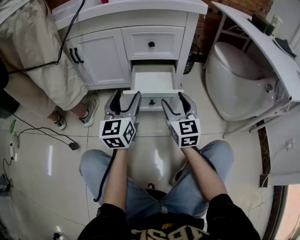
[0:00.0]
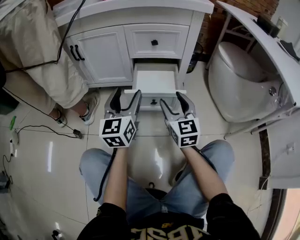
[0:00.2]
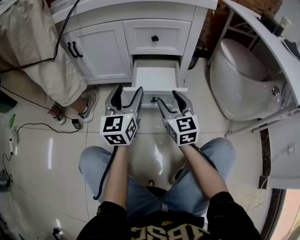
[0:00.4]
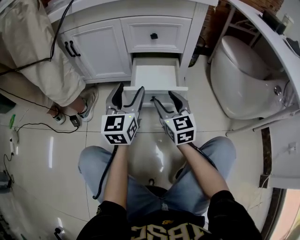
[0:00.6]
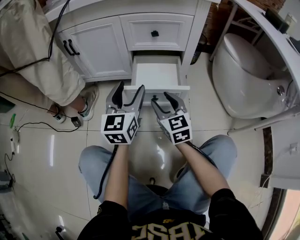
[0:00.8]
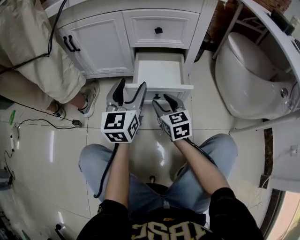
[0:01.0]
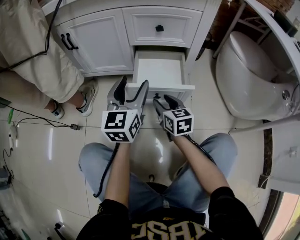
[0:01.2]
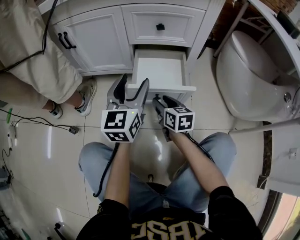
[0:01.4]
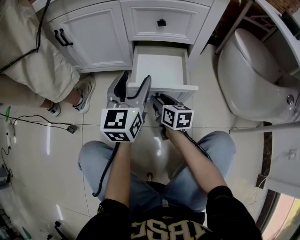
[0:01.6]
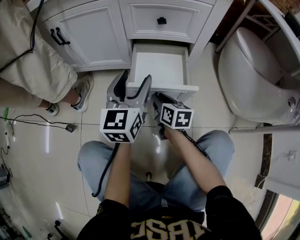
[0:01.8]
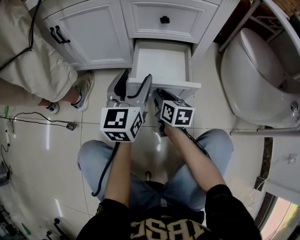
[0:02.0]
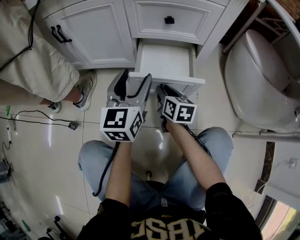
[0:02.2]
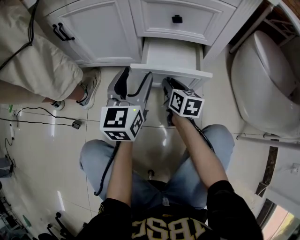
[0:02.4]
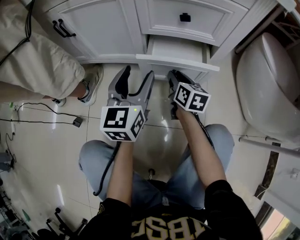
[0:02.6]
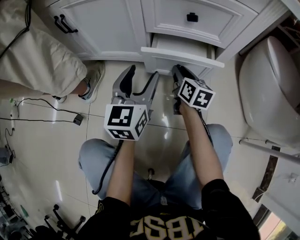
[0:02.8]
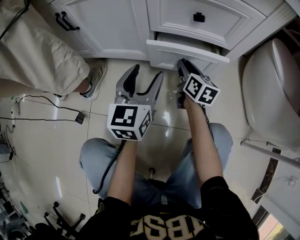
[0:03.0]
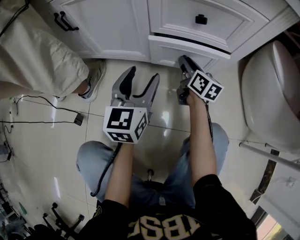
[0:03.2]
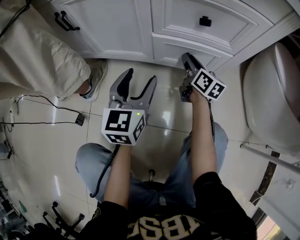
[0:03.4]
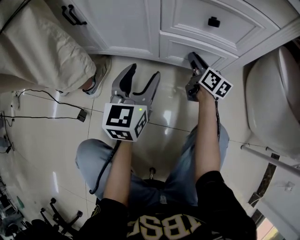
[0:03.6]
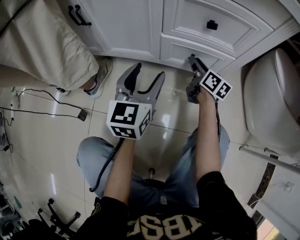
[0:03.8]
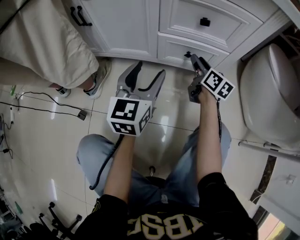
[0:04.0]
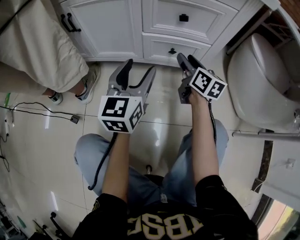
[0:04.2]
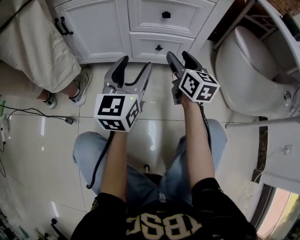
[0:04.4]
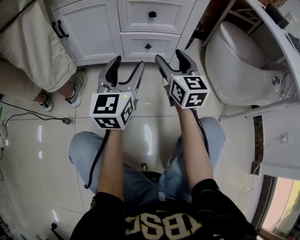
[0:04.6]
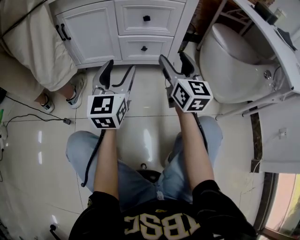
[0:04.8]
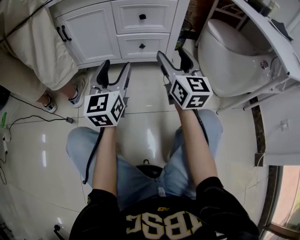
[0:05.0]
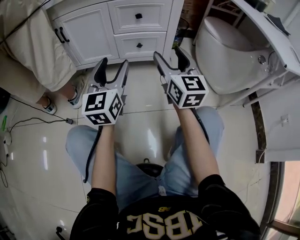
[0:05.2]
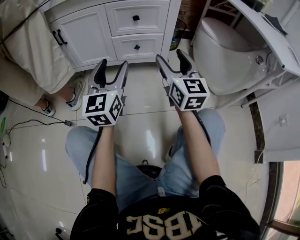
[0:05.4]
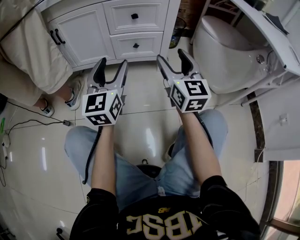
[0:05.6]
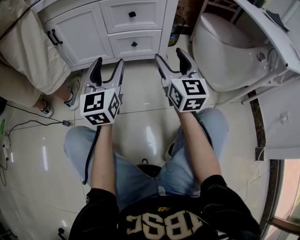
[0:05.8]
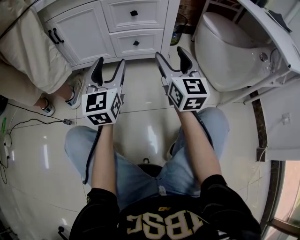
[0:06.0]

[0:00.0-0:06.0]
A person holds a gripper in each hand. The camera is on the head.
0.0 to 1.6 s: The right gripper shifts roughly 20 cm downward and forward, and changes its angle by roughly 40 degrees; the left gripper travels forward by about 10 cm.
1.6 to 3.0 s: The left gripper moves forward and downward, some 10 cm. Meanwhile the right gripper travels forward by about 15 cm.
3.0 to 4.4 s: The left gripper travels upward and backward by some 10 cm. Meanwhile the right gripper heads upward and backward, covering approximately 20 cm, and opens its fingers.
4.4 to 6.0 s: The left gripper moves backward, approximately 10 cm. Meanwhile the right gripper is displaced backward and upward by about 20 cm, and swivels roughly 20 degrees.

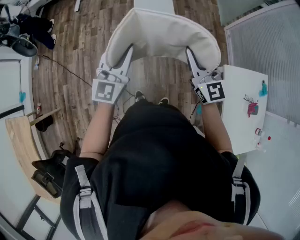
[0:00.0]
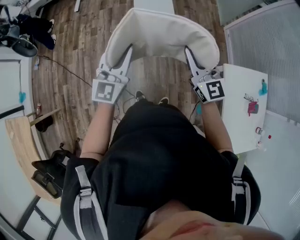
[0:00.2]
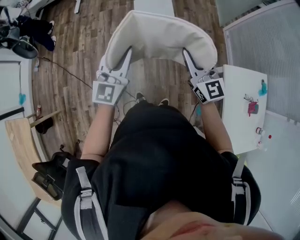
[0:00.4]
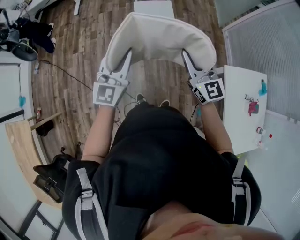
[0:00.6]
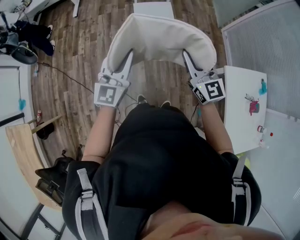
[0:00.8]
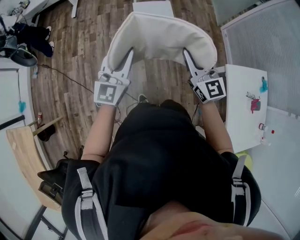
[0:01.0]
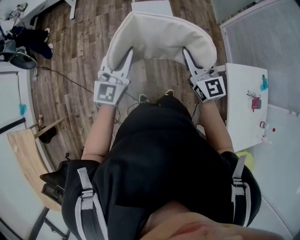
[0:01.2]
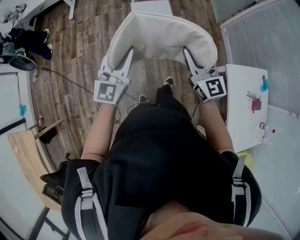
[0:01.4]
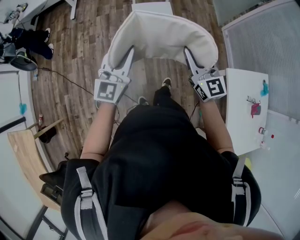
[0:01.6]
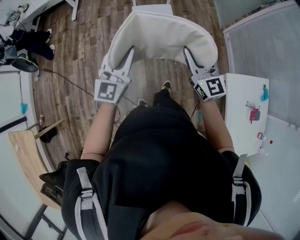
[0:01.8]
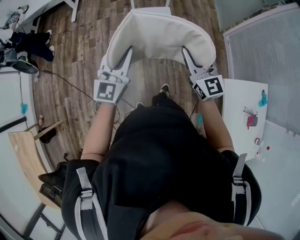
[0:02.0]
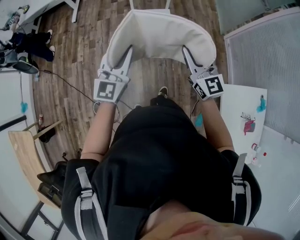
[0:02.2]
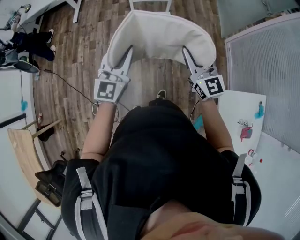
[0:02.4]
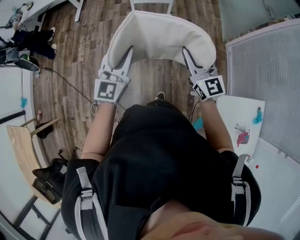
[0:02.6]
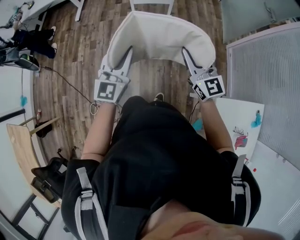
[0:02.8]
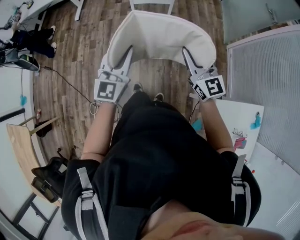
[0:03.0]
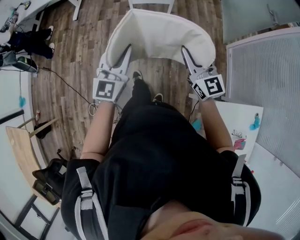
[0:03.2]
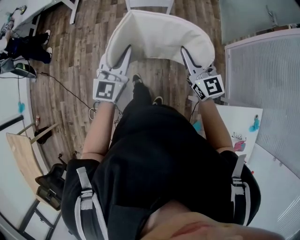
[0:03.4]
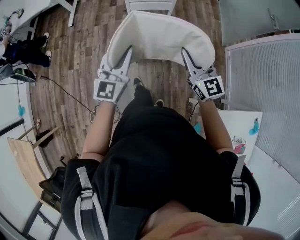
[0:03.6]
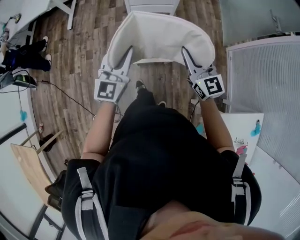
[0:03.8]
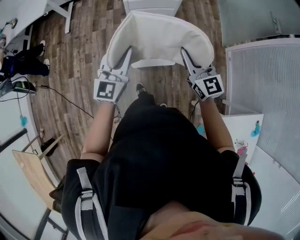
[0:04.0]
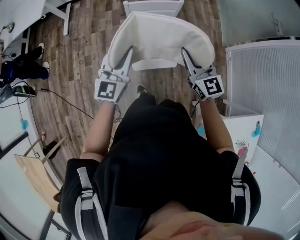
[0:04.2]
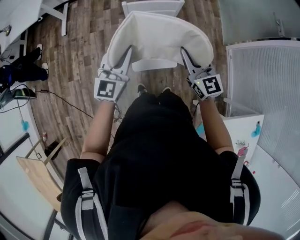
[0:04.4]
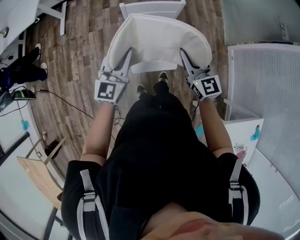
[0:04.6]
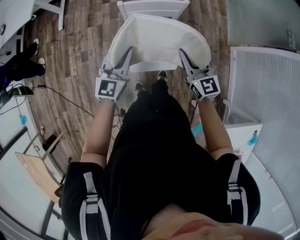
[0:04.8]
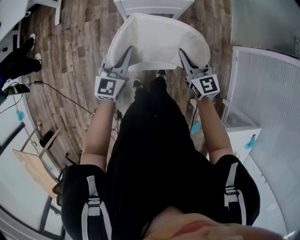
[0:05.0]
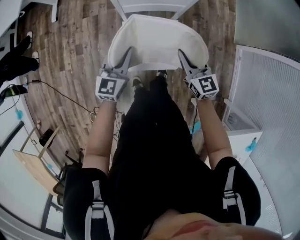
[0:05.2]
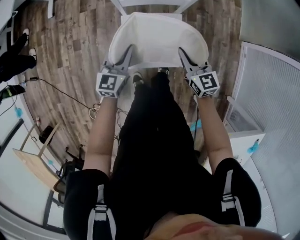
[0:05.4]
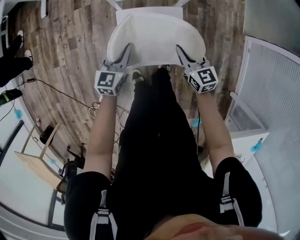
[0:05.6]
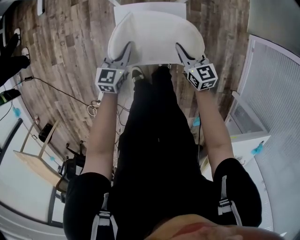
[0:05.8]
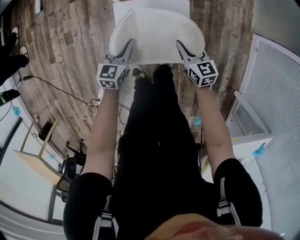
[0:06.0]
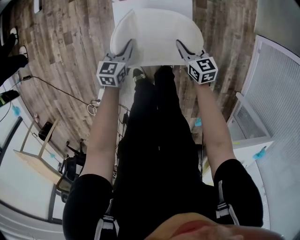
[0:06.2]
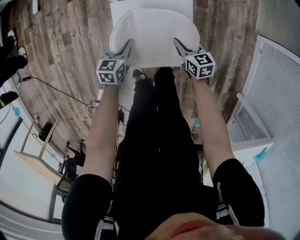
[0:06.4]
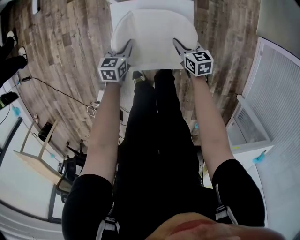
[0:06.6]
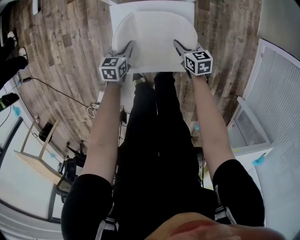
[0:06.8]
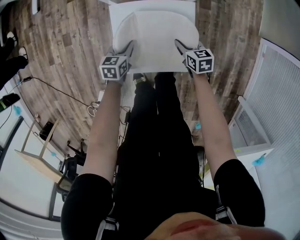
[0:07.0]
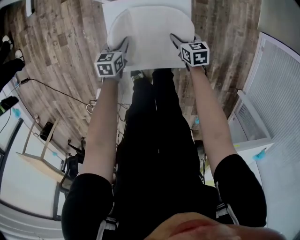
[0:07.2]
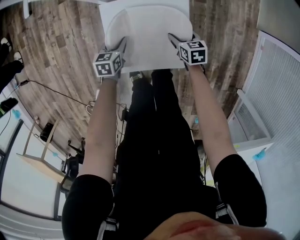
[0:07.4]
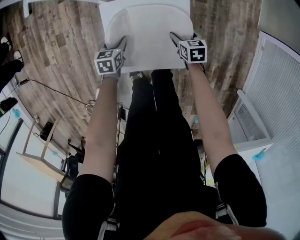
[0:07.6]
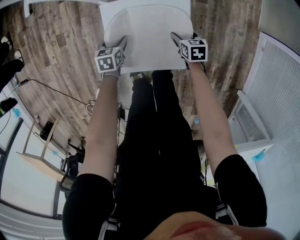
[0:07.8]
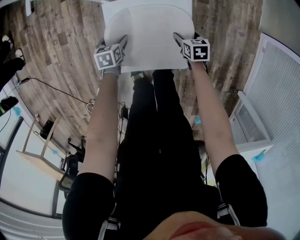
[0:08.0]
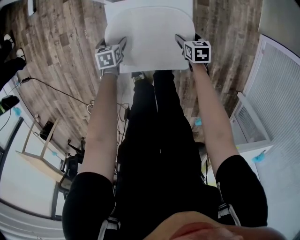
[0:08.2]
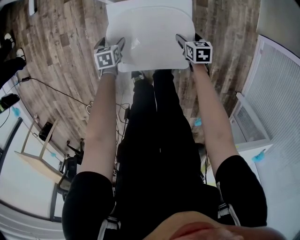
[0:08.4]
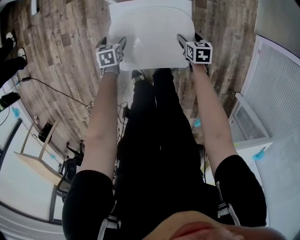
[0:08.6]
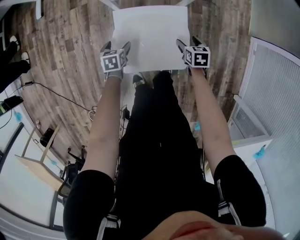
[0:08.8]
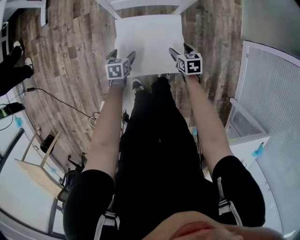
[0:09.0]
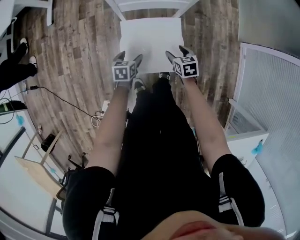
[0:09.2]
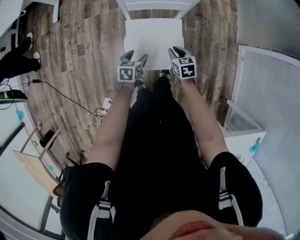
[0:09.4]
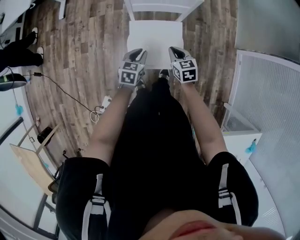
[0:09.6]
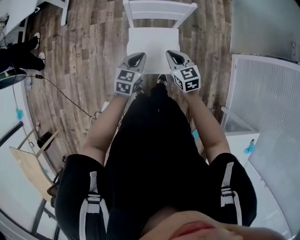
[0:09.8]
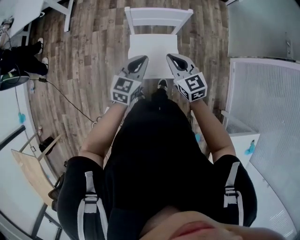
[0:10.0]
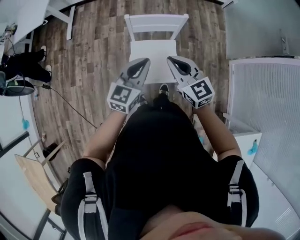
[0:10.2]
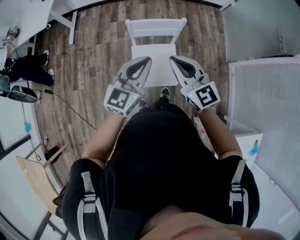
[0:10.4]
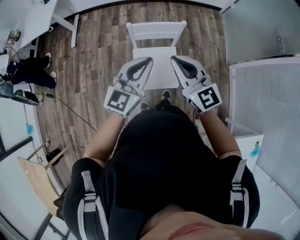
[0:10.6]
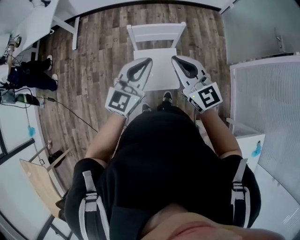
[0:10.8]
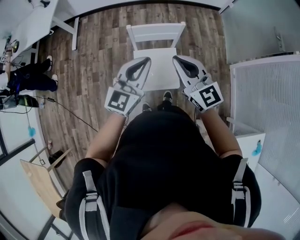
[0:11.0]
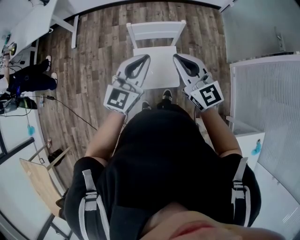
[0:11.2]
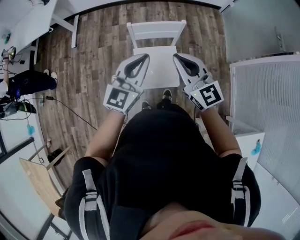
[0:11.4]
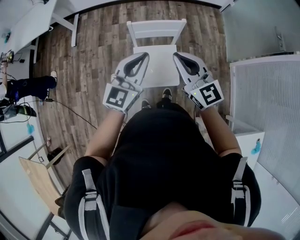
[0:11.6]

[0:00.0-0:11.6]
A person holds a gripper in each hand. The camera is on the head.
0.0 to 1.4 s: Both grippers travel together to the left, roughly 5 cm.
1.4 to 2.8 s: The grippers both shift forward and to the right by approximately 25 cm.
2.8 to 4.4 s: The two grippers go roughly 30 cm forward.
4.4 to 5.8 s: Both grippers move downward, about 50 cm. The left gripper swivels about 30 degrees; the right gripper turns by about 30 degrees.
5.8 to 7.2 s: The two grippers go roughly 20 cm downward. The right gripper turns by approximately 20 degrees, and opens up. The left gripper swivels approximately 20 degrees.
7.2 to 8.8 s: The left gripper shifts approximately 5 cm to the left, and opens its fingers; the right gripper heads upward, covering approximately 5 cm.
8.8 to 10.2 s: Both grippers move upward, roughly 60 cm. The left gripper tips its fingers upward by some 50 degrees, and closes its fingers; the right gripper tilts its fingers about 40 degrees upward, and closes.
10.2 to 11.6 s: The two grippers go approximately 10 cm upward.

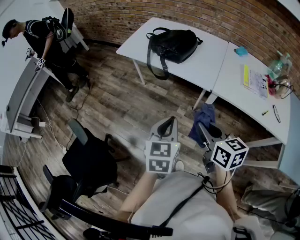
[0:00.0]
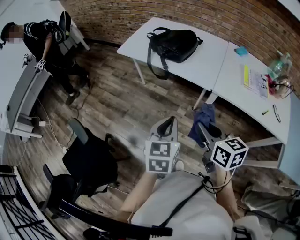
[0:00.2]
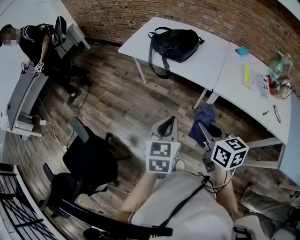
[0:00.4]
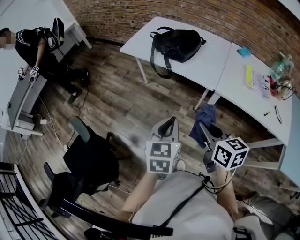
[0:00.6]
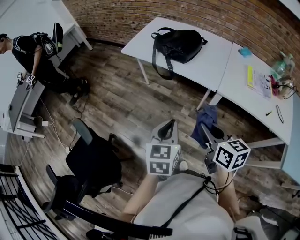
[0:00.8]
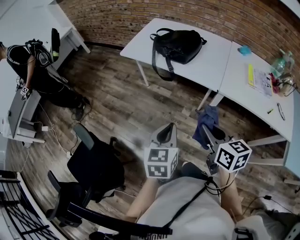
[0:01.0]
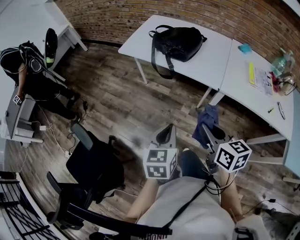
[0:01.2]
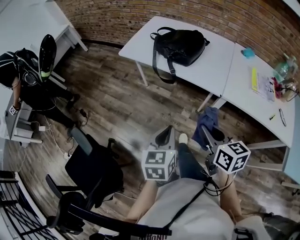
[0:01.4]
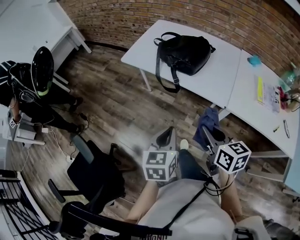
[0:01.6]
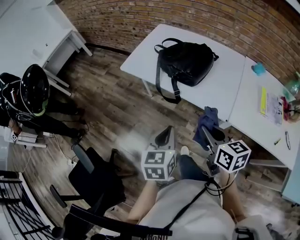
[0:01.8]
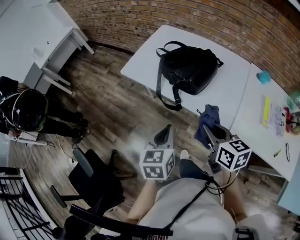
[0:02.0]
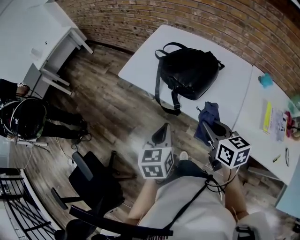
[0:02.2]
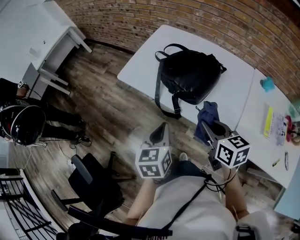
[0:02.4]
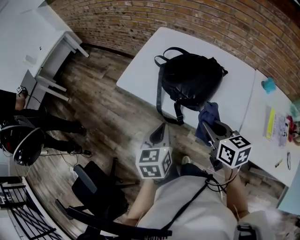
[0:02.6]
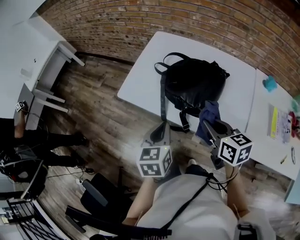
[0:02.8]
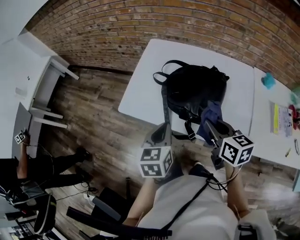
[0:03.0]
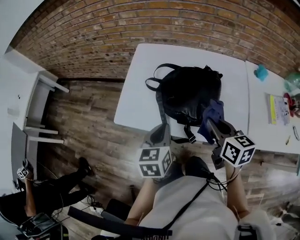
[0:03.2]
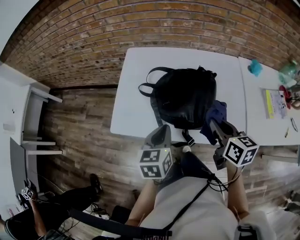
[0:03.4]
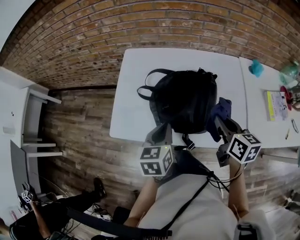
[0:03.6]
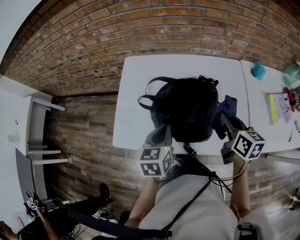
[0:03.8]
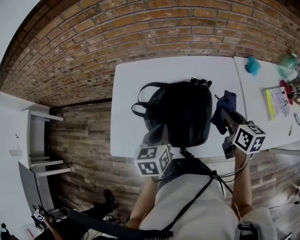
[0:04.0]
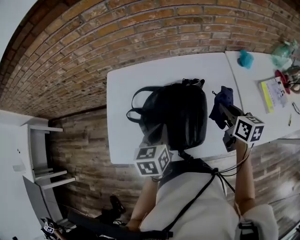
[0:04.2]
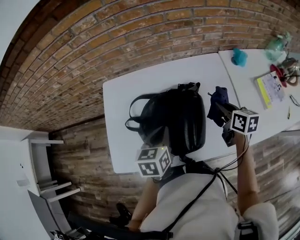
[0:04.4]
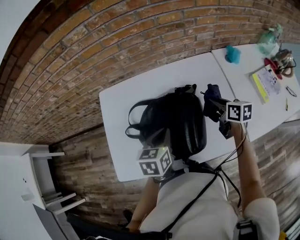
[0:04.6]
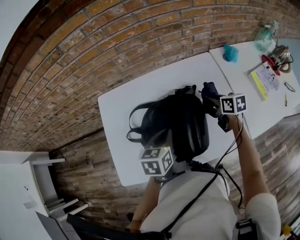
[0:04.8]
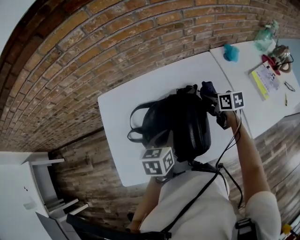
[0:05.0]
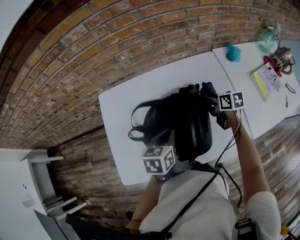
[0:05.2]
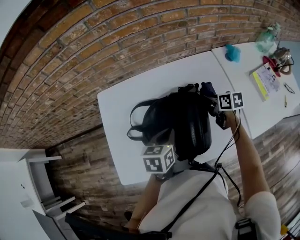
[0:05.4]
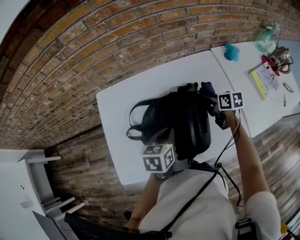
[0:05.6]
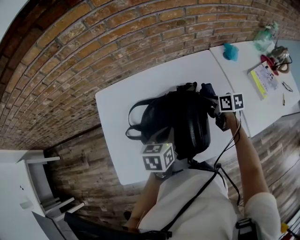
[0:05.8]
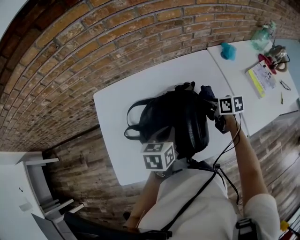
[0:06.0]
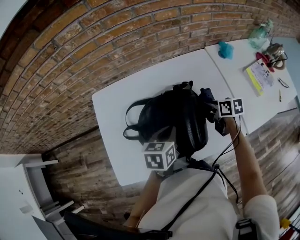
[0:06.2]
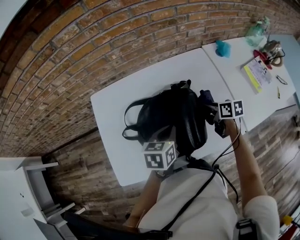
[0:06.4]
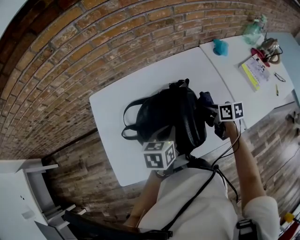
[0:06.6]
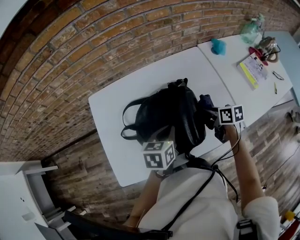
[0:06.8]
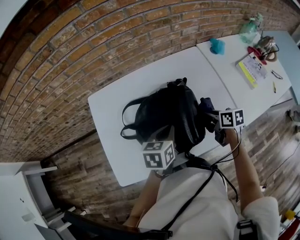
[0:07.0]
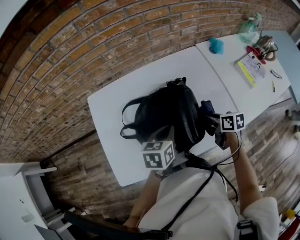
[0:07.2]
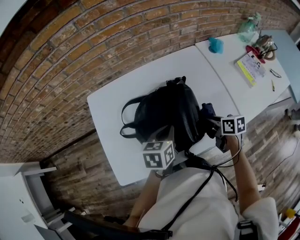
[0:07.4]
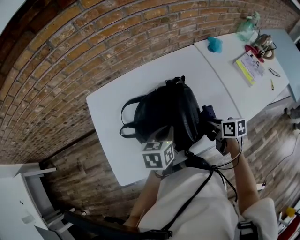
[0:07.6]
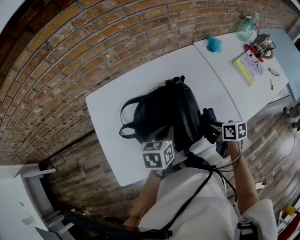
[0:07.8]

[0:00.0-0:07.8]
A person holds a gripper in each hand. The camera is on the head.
0.0 to 1.6 s: The right gripper is displaced forward by roughly 10 cm, while the left gripper moves forward and to the left, about 10 cm.
1.6 to 3.2 s: Both grippers travel together forward, approximately 40 cm.
3.2 to 4.6 s: The right gripper shifts some 25 cm forward, to the right and downward, and turns by roughly 20 degrees. Meanwhile the left gripper travels forward and to the right by about 20 cm, and turns by approximately 30 degrees.
4.6 to 6.2 s: The right gripper goes approximately 5 cm downward.
6.2 to 7.8 s: The right gripper heads backward, covering some 15 cm.
